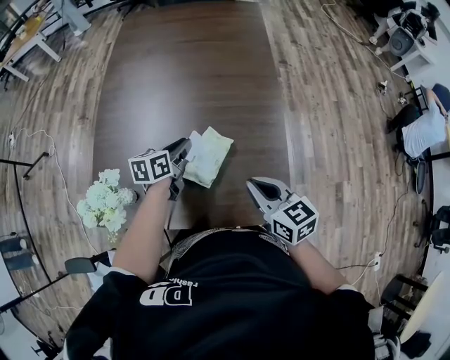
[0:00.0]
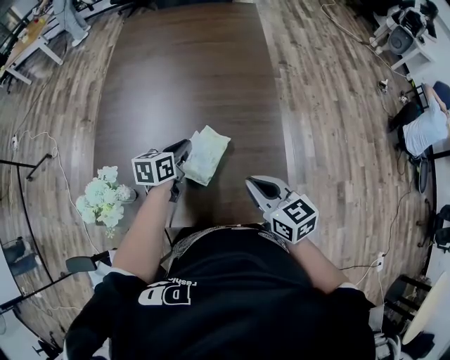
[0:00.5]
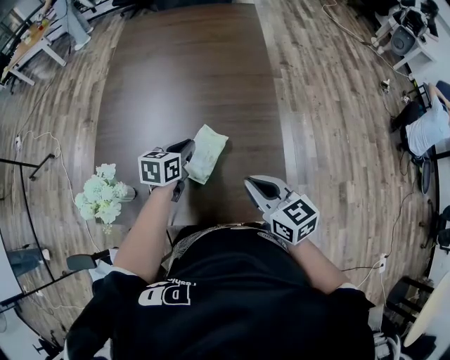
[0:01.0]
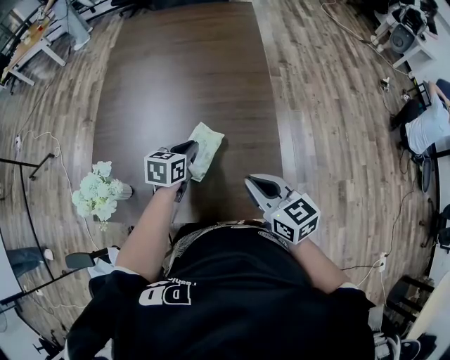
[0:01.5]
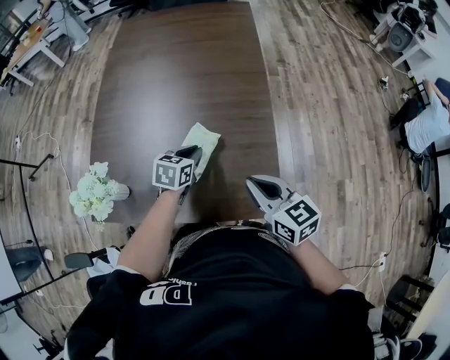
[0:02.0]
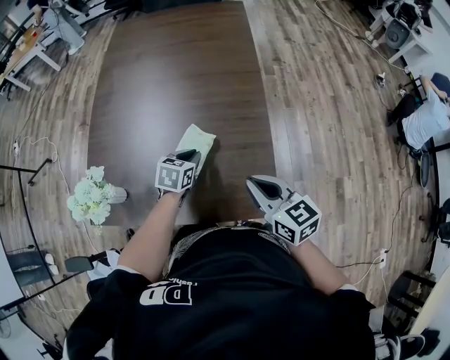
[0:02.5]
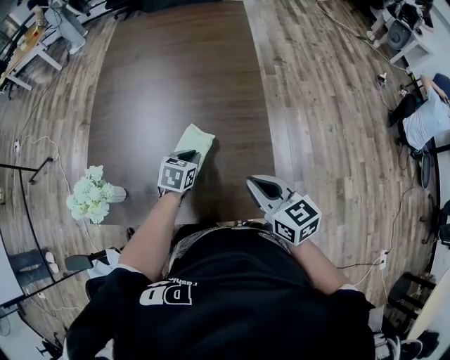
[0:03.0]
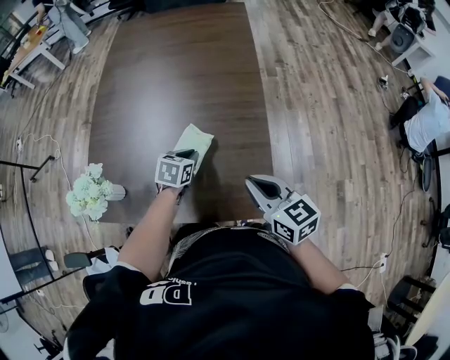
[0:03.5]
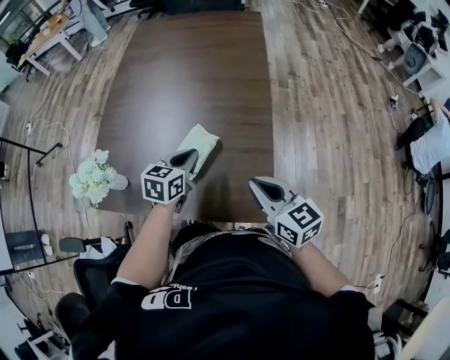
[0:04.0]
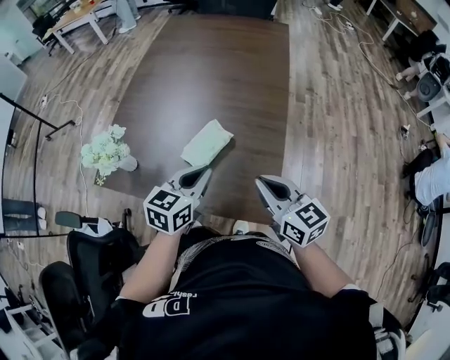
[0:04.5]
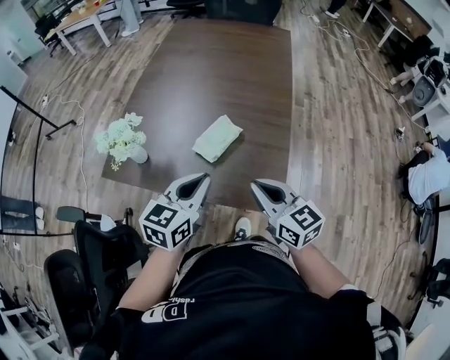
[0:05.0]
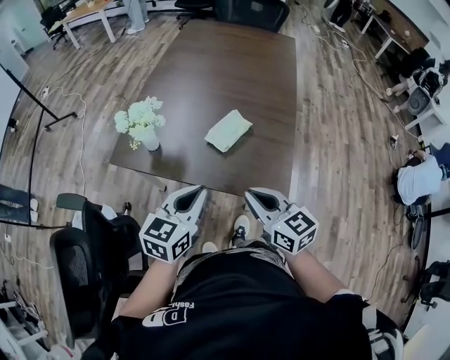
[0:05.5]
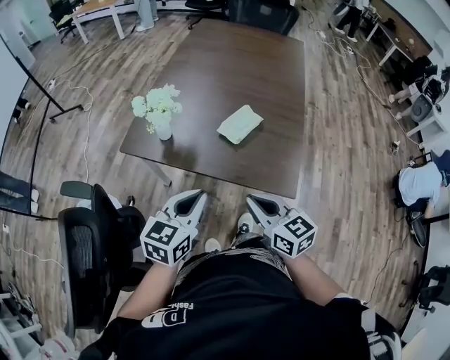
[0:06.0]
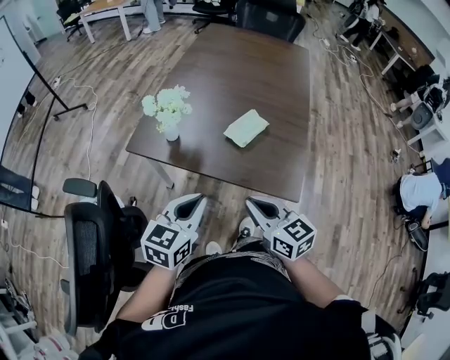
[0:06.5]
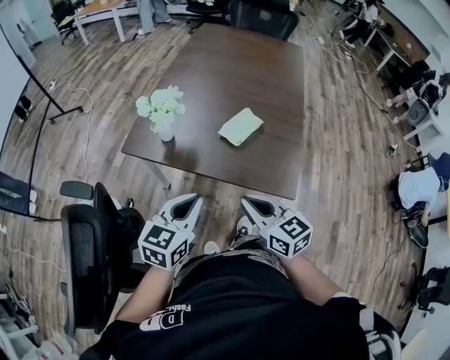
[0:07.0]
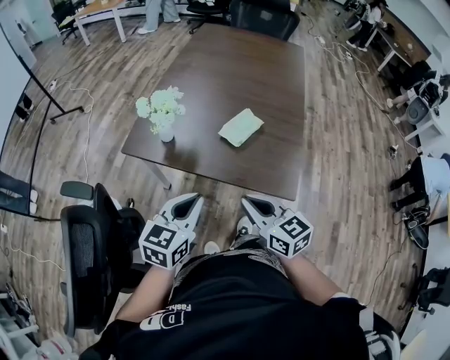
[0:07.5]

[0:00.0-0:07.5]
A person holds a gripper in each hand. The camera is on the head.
0:00.0 to 0:02.0: The right gripper moves some 5 cm. Meanwhile the left gripper goes approximately 10 cm to the right, and rotates about 30 degrees.
0:02.0 to 0:04.0: The left gripper heads upward, covering approximately 5 cm.
0:04.0 to 0:05.5: The right gripper shifts some 20 cm to the left and backward; the left gripper shifts roughly 30 cm backward, upward and to the left.
0:05.5 to 0:07.5: The right gripper heads to the left, covering about 5 cm. The left gripper moves to the left and backward, roughly 10 cm.

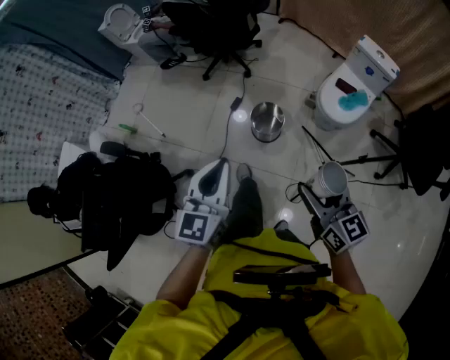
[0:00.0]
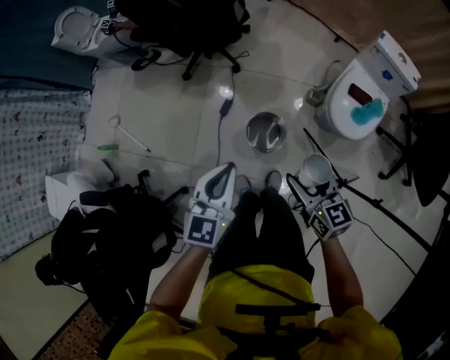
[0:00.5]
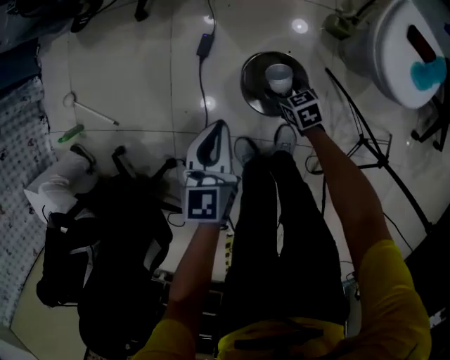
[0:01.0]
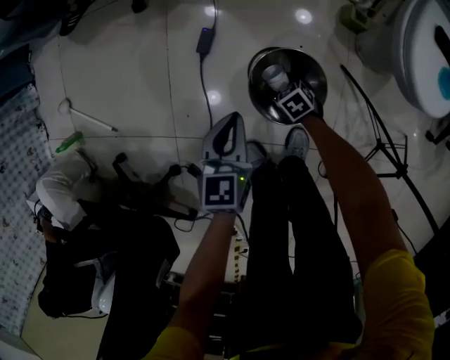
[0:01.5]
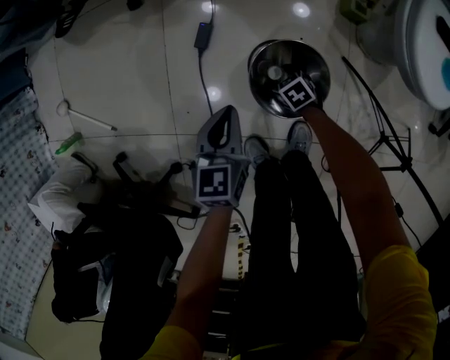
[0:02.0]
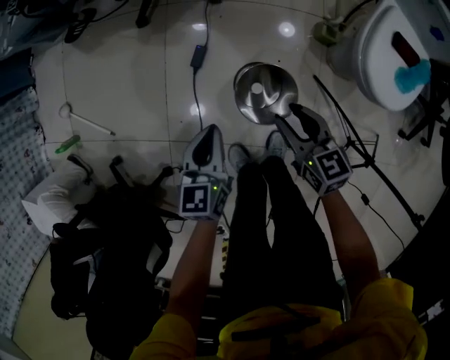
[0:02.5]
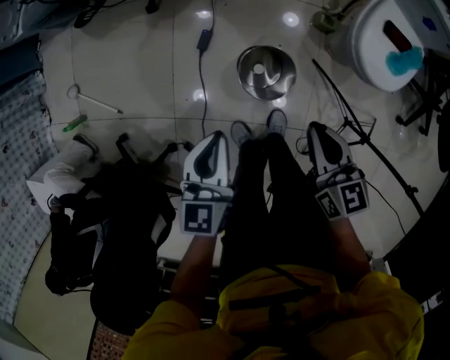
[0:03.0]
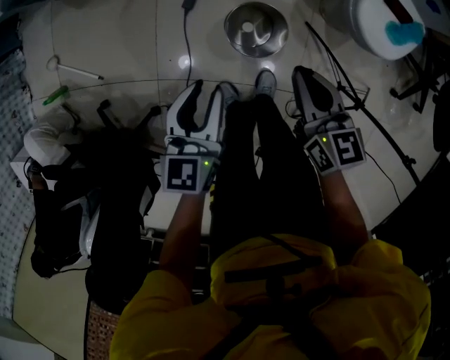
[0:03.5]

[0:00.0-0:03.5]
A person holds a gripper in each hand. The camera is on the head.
0:00.0 to 0:02.0: Both grippers move downward and forward, about 90 cm. The left gripper changes its angle by about 30 degrees. Meanwhile the right gripper angles its fingers downward, by some 50 degrees.
0:02.0 to 0:03.5: The left gripper travels upward by approximately 25 cm, while the right gripper moves upward, approximately 50 cm, tilts its fingers about 30 degrees upward, and closes up.

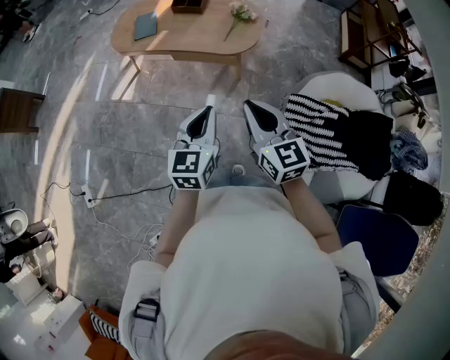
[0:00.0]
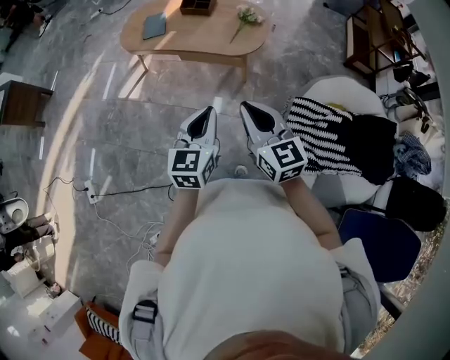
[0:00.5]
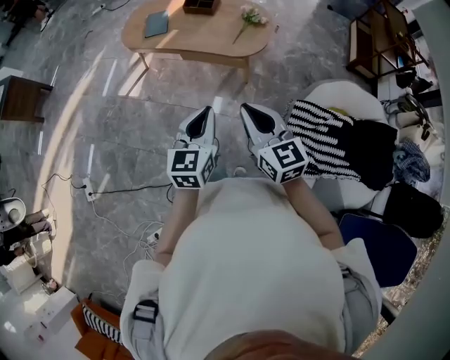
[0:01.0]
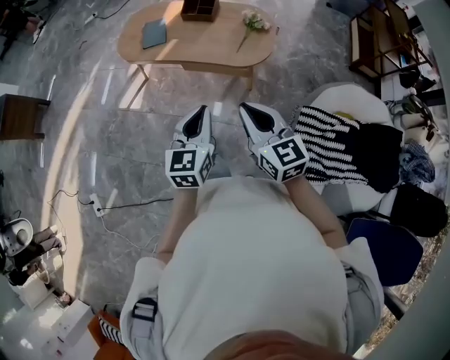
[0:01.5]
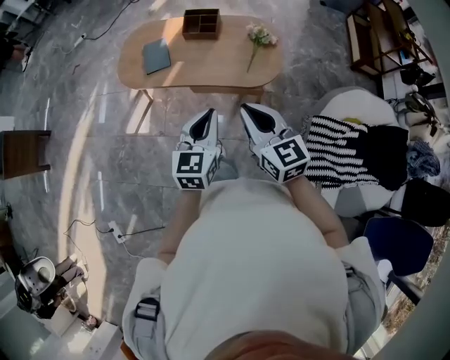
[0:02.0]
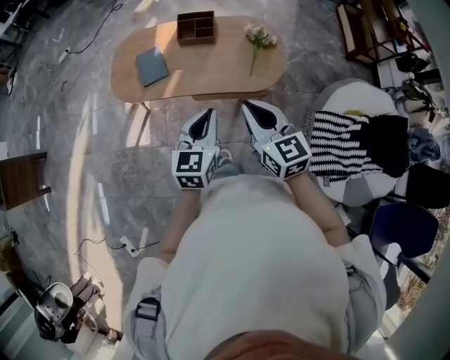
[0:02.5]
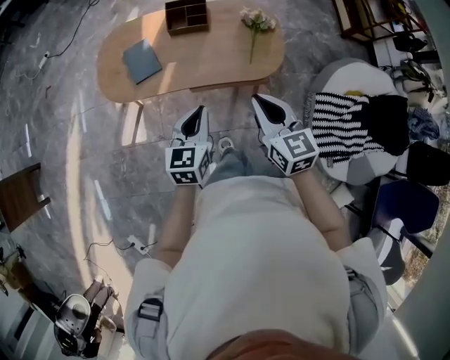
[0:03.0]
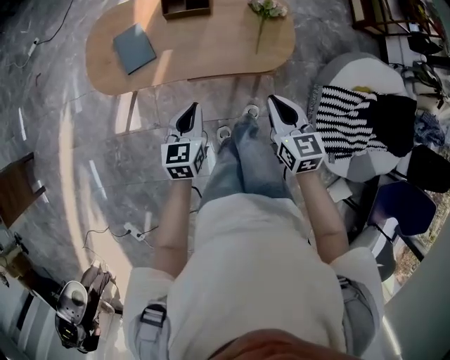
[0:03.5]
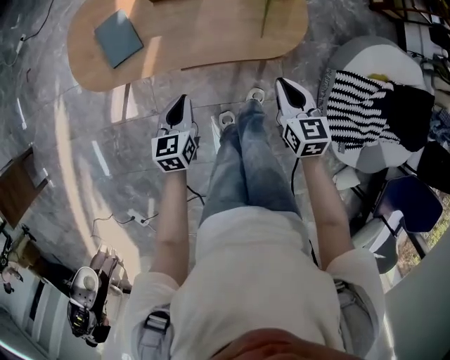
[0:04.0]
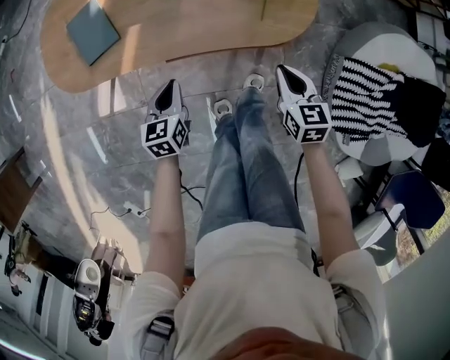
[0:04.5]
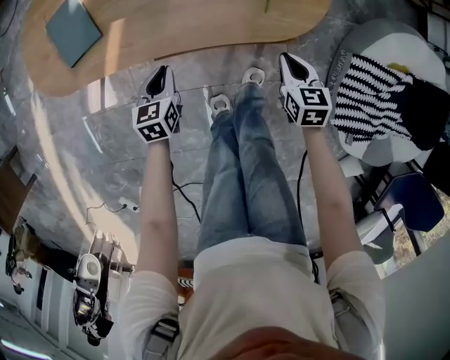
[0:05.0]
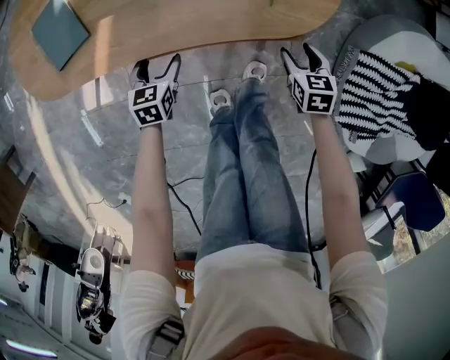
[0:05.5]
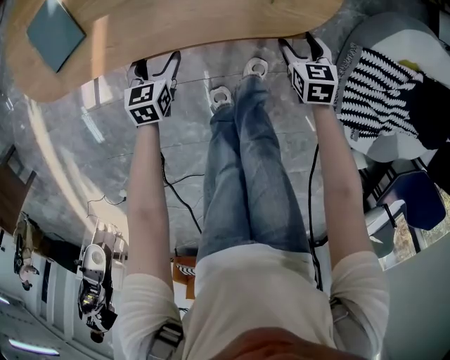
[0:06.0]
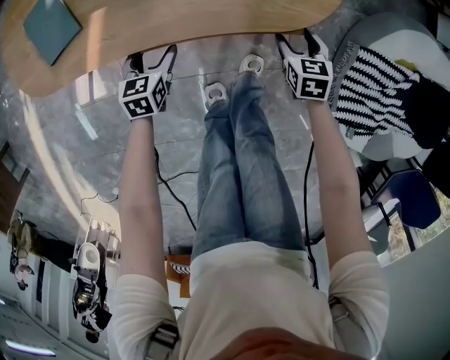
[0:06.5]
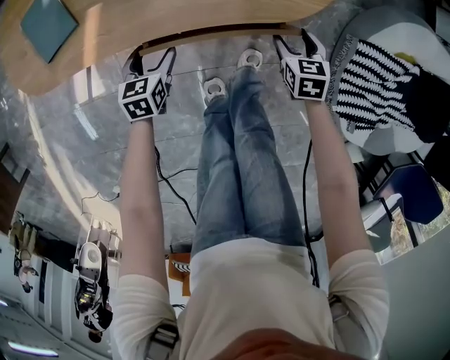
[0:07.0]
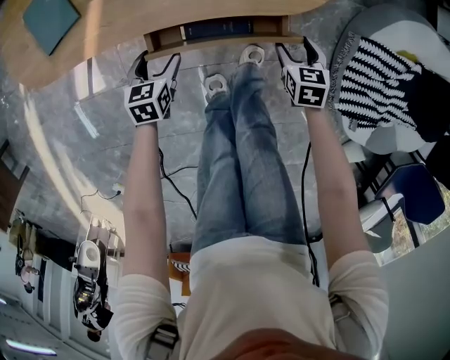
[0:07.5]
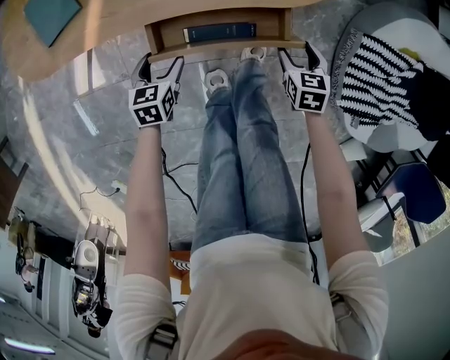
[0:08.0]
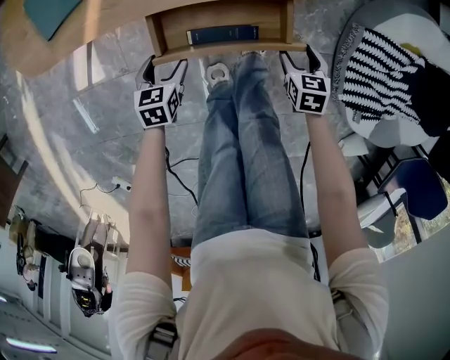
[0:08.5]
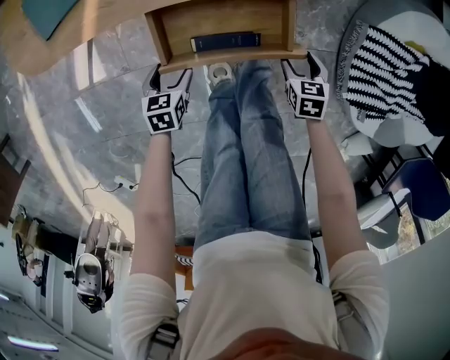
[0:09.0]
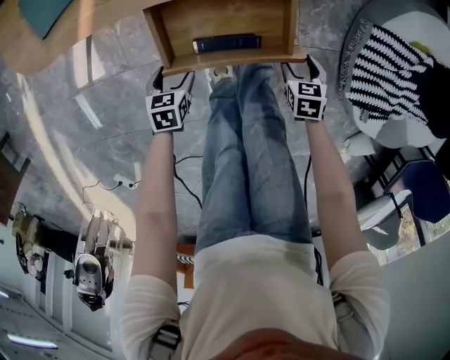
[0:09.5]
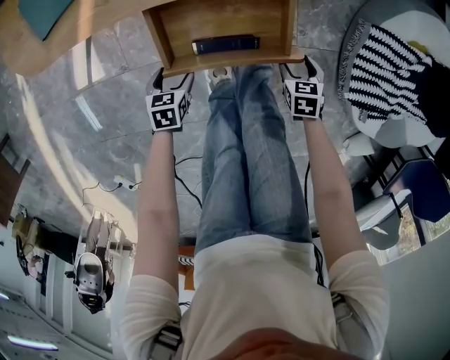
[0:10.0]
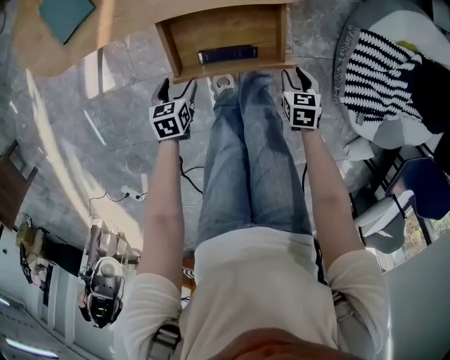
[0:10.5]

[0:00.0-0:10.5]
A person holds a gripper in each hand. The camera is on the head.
0:00.0 to 0:02.0: Both grippers move forward and to the left, approximately 25 cm.
0:02.0 to 0:04.0: The left gripper travels downward, forward and to the left by some 35 cm, and turns by approximately 20 degrees. Meanwhile the right gripper heads downward and forward, covering some 35 cm, and rotates roughly 30 degrees.
0:04.0 to 0:06.5: Both grippers travel together downward, some 30 cm. The left gripper opens its fingers. Meanwhile the right gripper changes its angle by about 20 degrees, and opens its fingers.
0:06.5 to 0:08.5: The two grippers go about 15 cm backward.
0:08.5 to 0:10.5: Both grippers move backward, about 5 cm. The right gripper closes up.

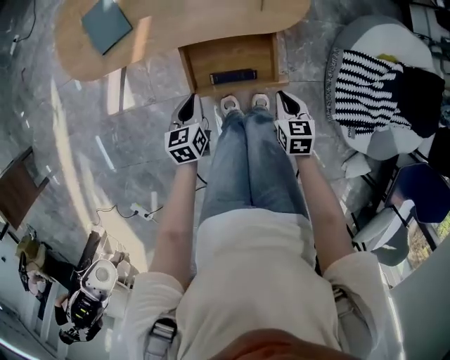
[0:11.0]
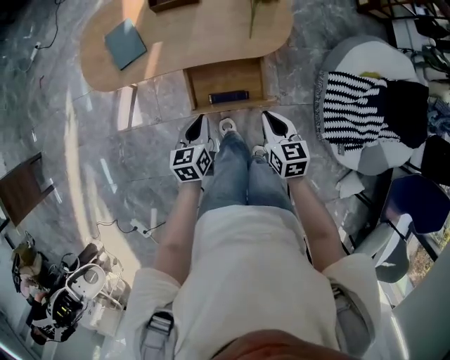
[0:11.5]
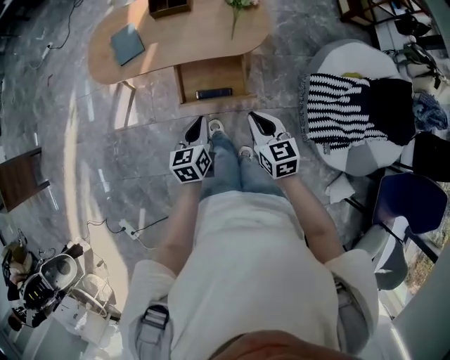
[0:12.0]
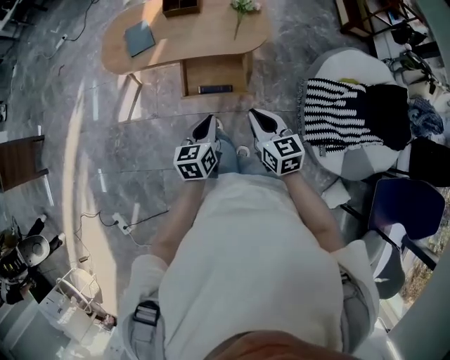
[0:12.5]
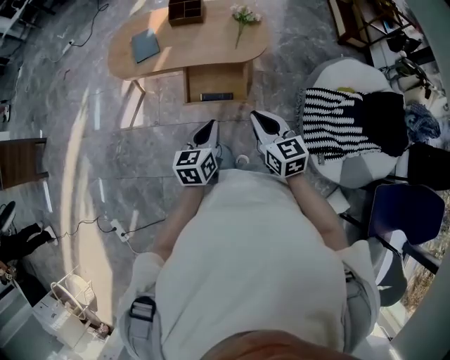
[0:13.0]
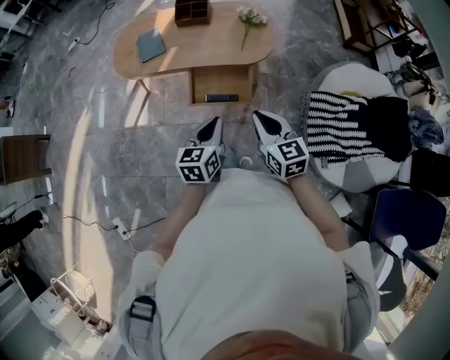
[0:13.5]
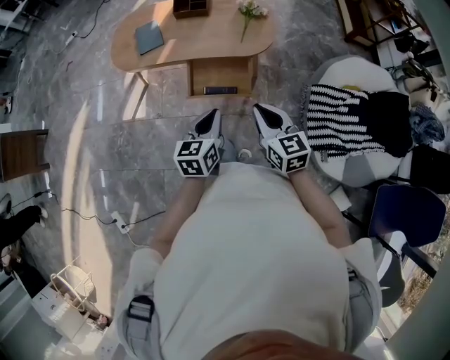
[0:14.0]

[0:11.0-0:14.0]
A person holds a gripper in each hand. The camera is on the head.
0:11.0 to 0:12.5: The right gripper heads upward and backward, covering some 35 cm, and turns by some 30 degrees, while the left gripper goes about 35 cm upward, backward and to the right.
0:12.5 to 0:14.0: The grippers make only small movements.

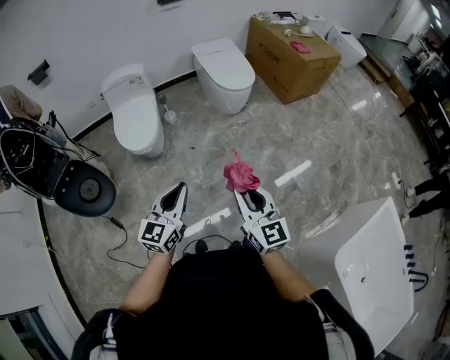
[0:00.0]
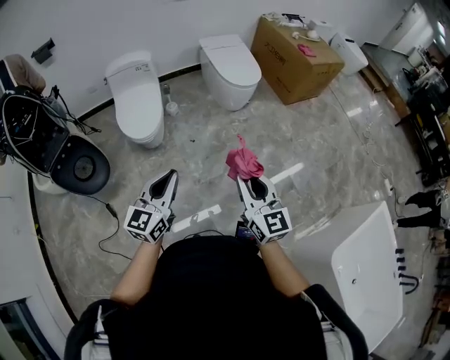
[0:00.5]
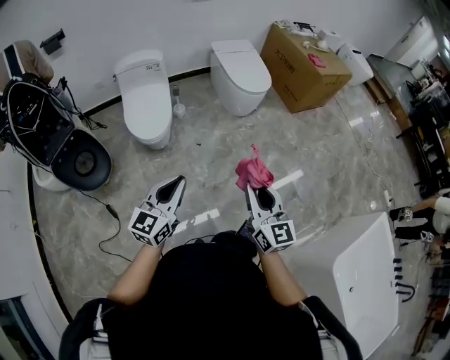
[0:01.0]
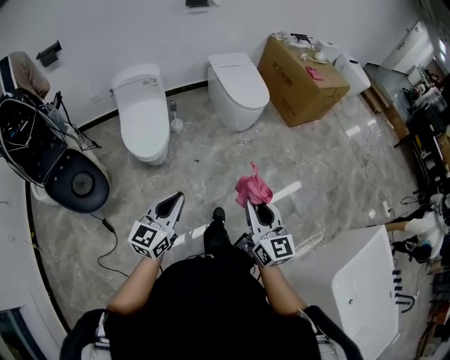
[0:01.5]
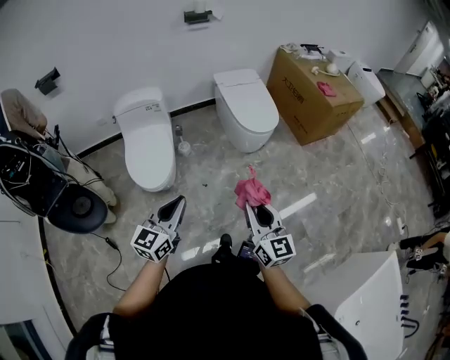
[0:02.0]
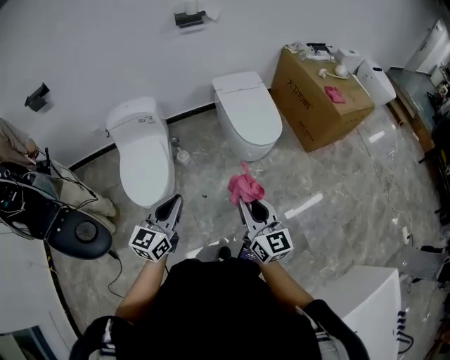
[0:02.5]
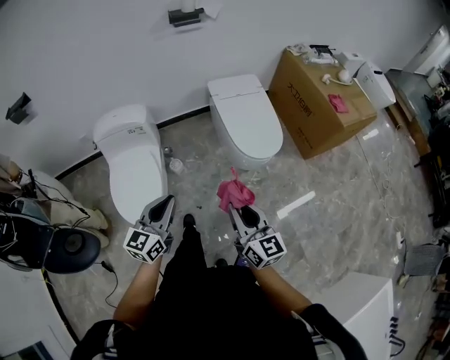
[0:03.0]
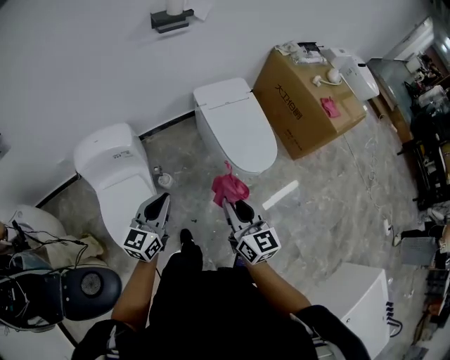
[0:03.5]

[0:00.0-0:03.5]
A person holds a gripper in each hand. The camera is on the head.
0:00.0 to 0:02.0: The right gripper goes approximately 20 cm forward; the left gripper heads forward and to the left, covering about 20 cm.
0:02.0 to 0:03.5: The pair of grippers is taken forward, about 40 cm.
